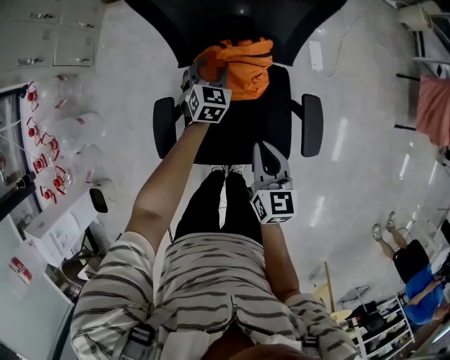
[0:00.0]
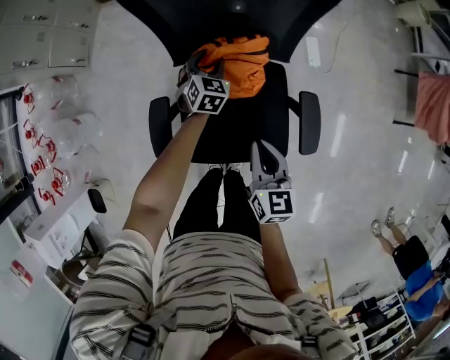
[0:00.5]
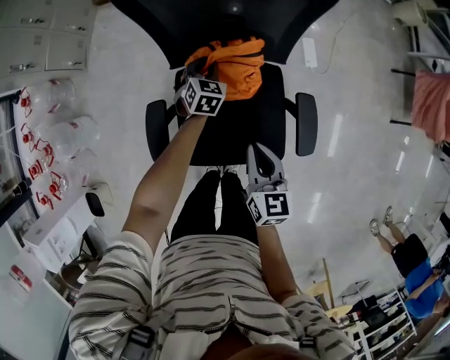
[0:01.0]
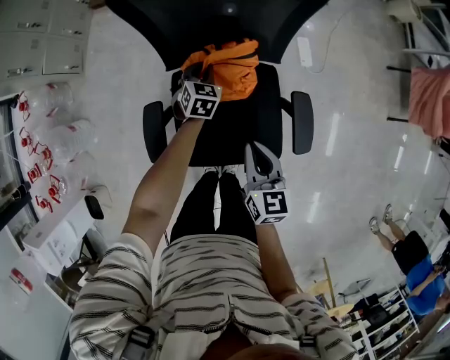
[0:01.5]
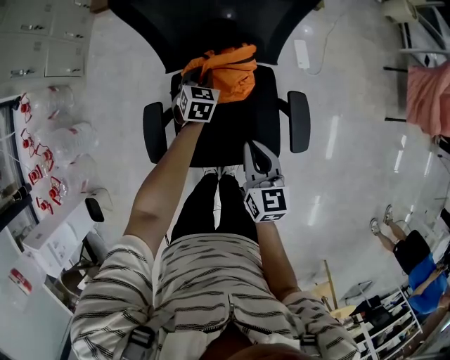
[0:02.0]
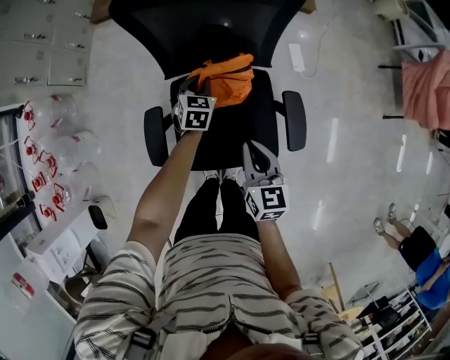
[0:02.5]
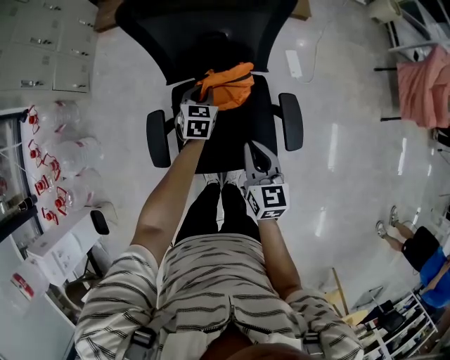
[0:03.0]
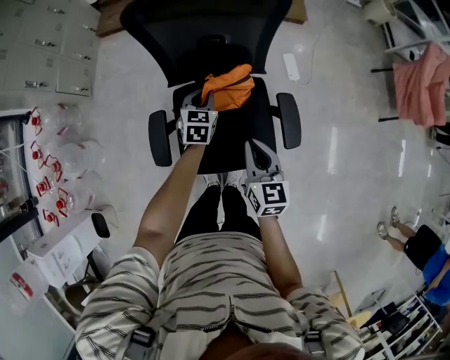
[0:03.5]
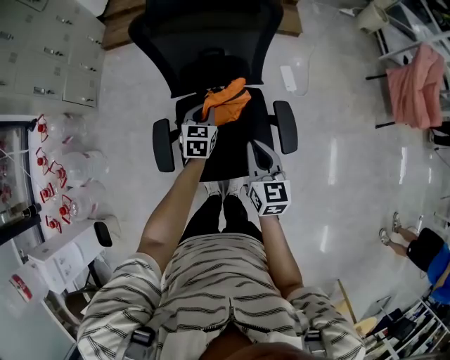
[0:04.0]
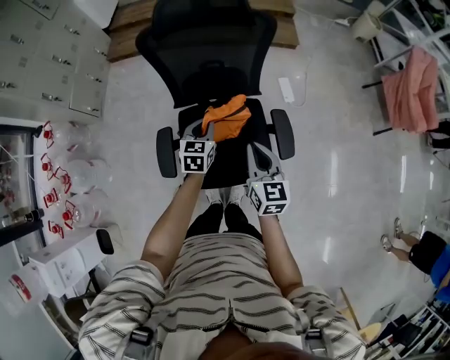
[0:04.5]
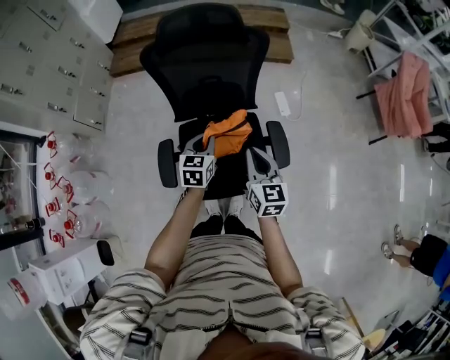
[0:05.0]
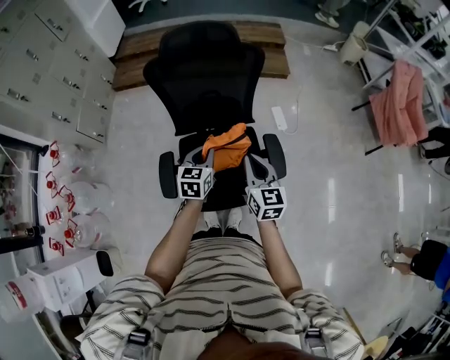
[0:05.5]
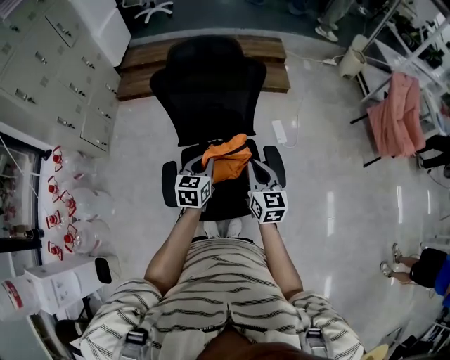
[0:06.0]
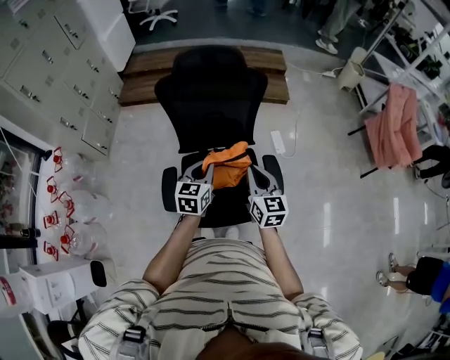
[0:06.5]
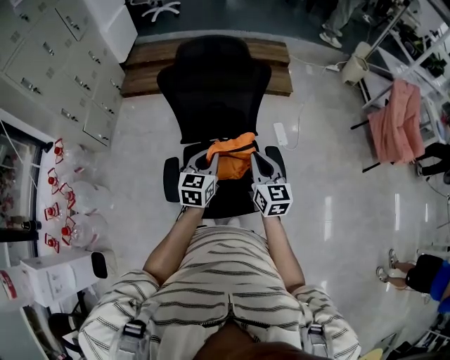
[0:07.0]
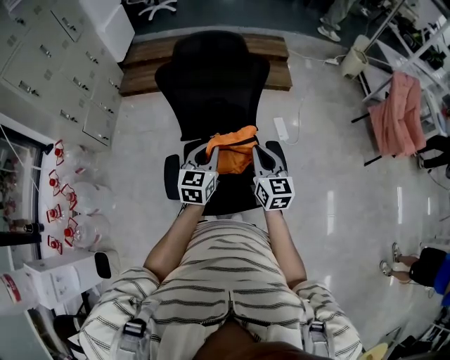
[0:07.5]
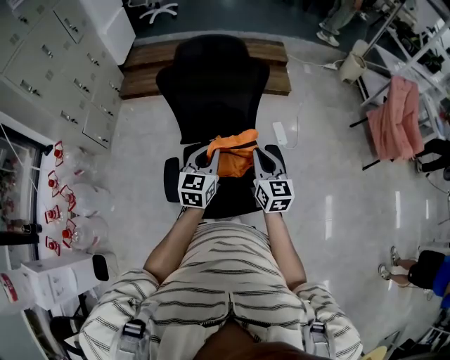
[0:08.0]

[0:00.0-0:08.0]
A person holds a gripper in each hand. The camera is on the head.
0:00.0 to 0:02.0: The left gripper closes its fingers.
0:02.0 to 0:04.0: The left gripper goes some 15 cm upward and backward. Meanwhile the right gripper moves upward, approximately 5 cm.
0:04.0 to 0:06.0: The right gripper moves upward, some 5 cm. Meanwhile the left gripper travels upward and backward by about 15 cm.
0:06.0 to 0:08.0: The left gripper shifts some 5 cm upward.

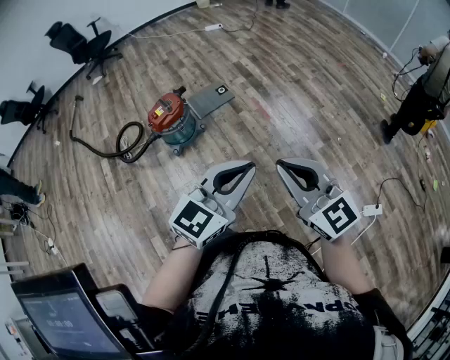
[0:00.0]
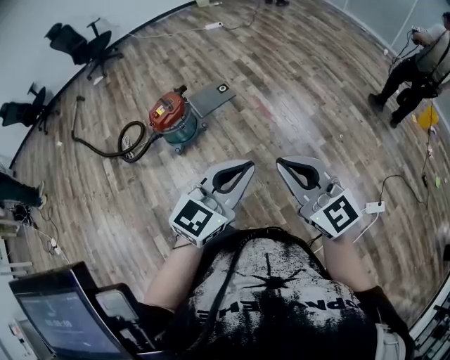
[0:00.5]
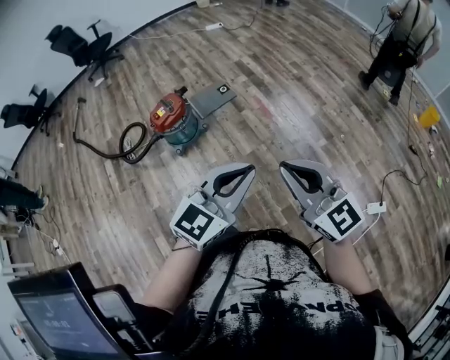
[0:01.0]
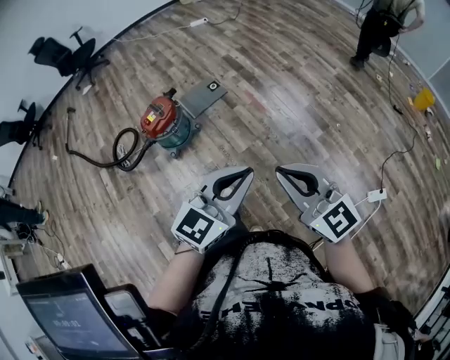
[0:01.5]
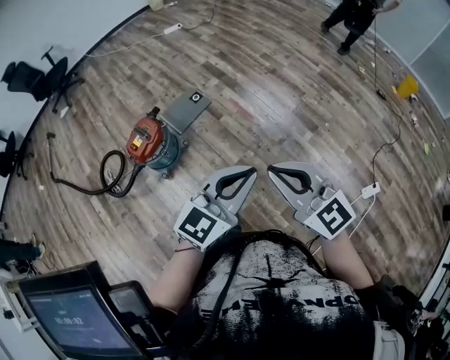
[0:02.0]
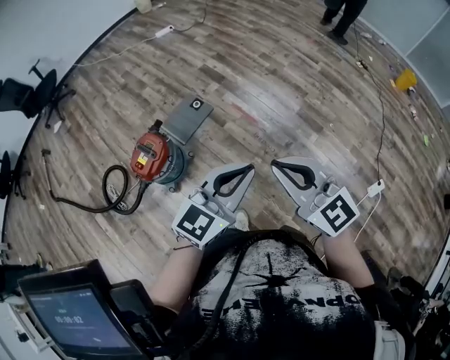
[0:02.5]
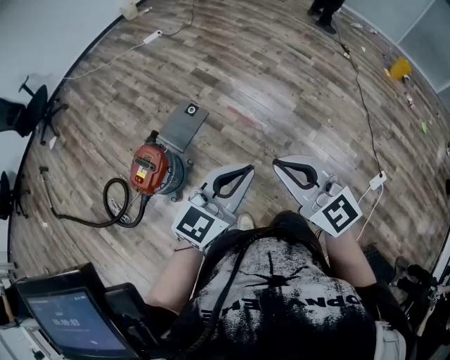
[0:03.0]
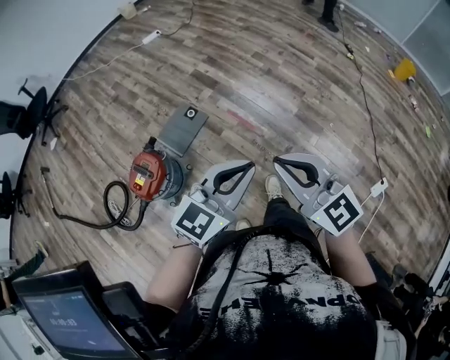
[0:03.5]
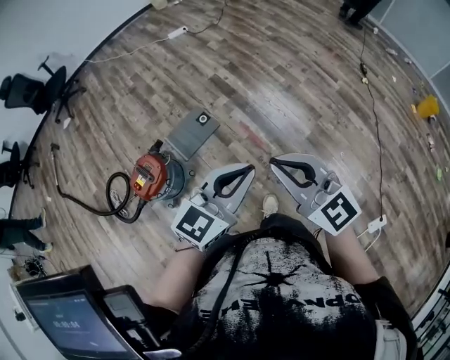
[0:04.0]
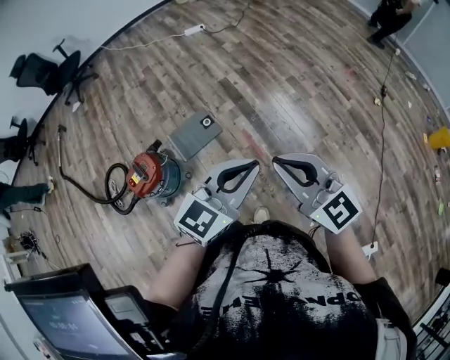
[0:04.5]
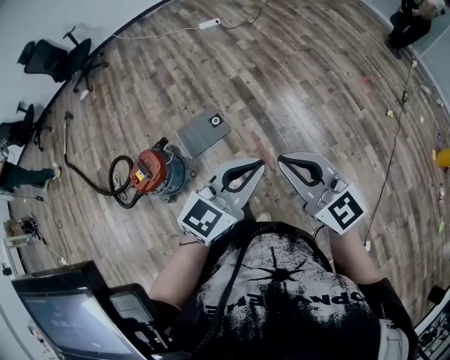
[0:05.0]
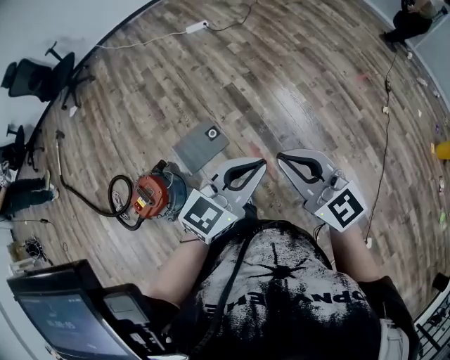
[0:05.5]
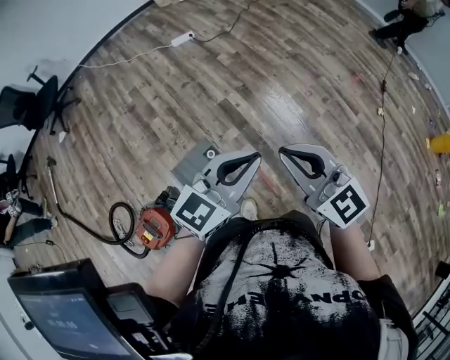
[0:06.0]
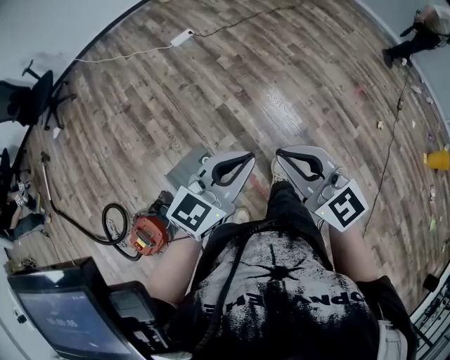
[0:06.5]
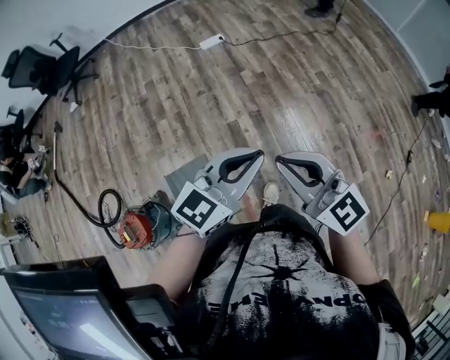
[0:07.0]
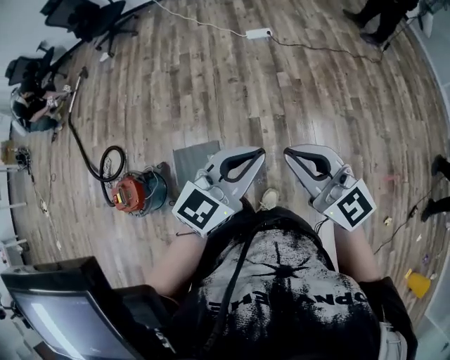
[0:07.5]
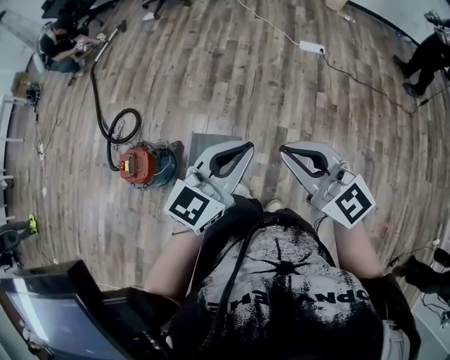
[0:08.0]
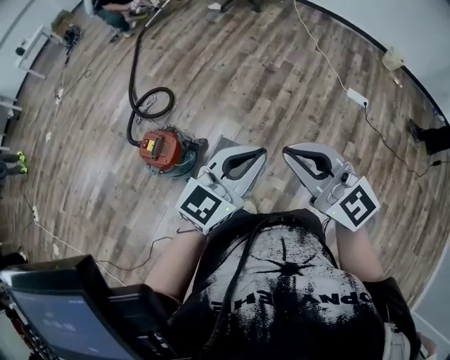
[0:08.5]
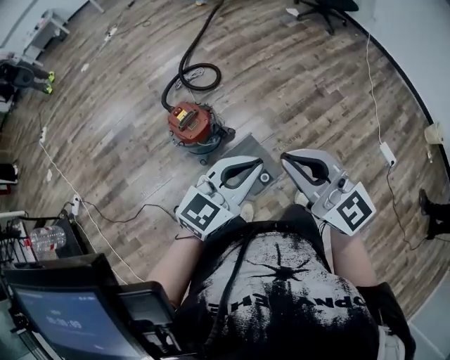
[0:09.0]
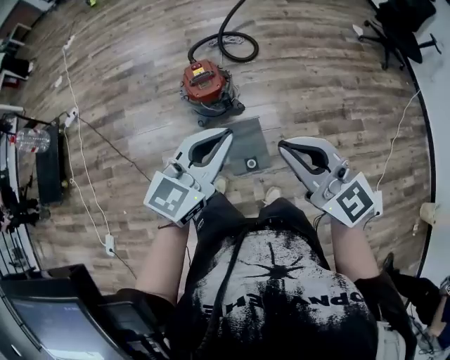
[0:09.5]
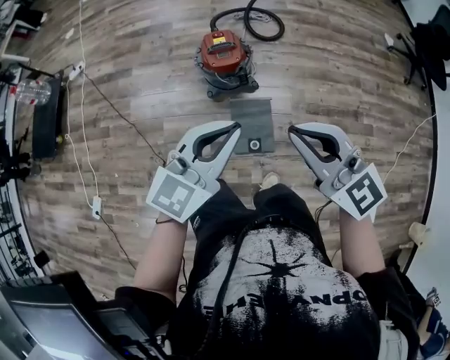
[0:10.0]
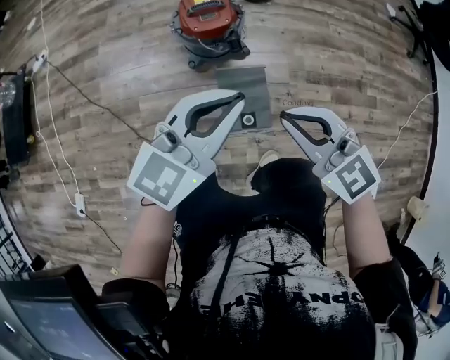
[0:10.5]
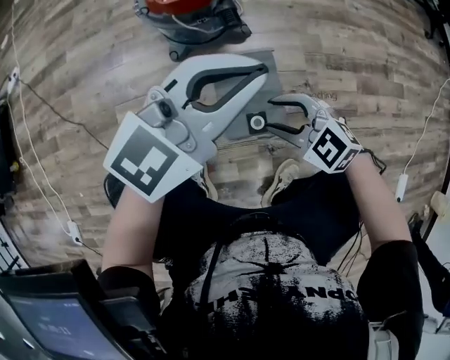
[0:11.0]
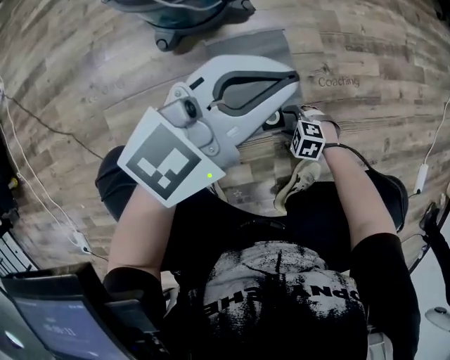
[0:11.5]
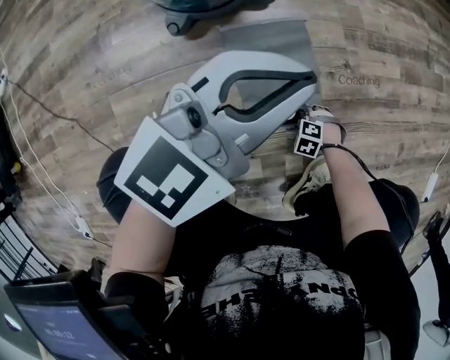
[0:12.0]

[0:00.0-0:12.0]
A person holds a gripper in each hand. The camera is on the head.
0:00.0 to 0:02.0: Both grippers travel together forward, about 15 cm.
0:02.0 to 0:04.0: Both grippers travel together forward, about 30 cm.
0:04.0 to 0:06.0: Both grippers are carried forward, some 40 cm.
0:06.0 to 0:08.0: The right gripper moves roughly 30 cm, and swivels about 50 degrees; the left gripper moves about 25 cm, and rotates approximately 50 degrees.
0:08.0 to 0:10.0: The right gripper ends up roughly 25 cm from where it was, and swivels some 80 degrees; the left gripper changes place by some 25 cm, and rotates some 80 degrees.
0:10.0 to 0:12.0: The left gripper travels downward by some 50 cm, and changes its angle by about 30 degrees, while the right gripper shifts some 1 m downward, points its fingers approximately 80 degrees further downward, and opens up.

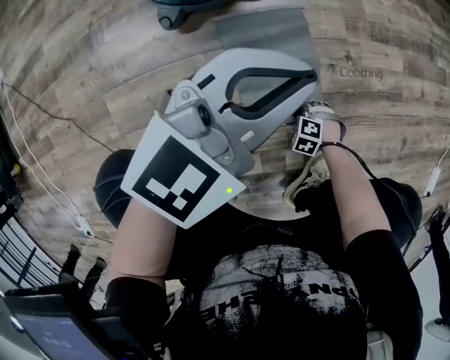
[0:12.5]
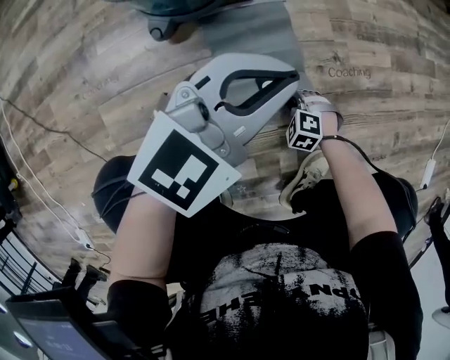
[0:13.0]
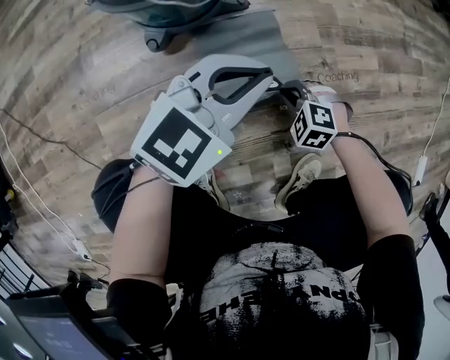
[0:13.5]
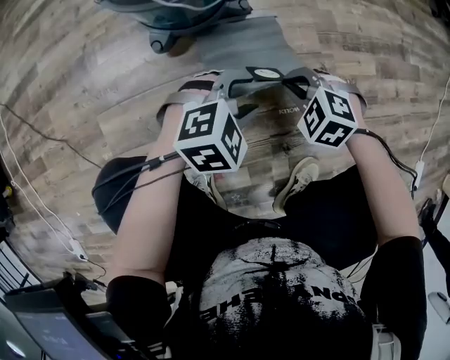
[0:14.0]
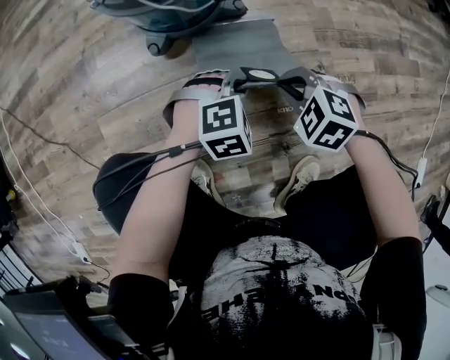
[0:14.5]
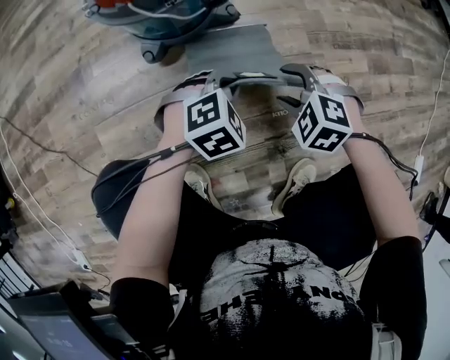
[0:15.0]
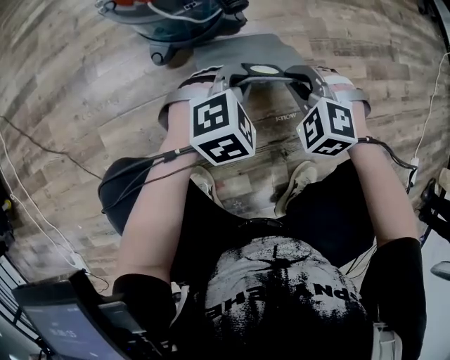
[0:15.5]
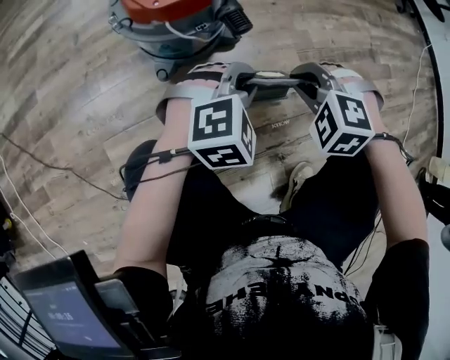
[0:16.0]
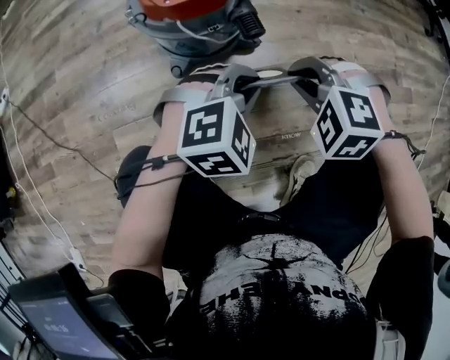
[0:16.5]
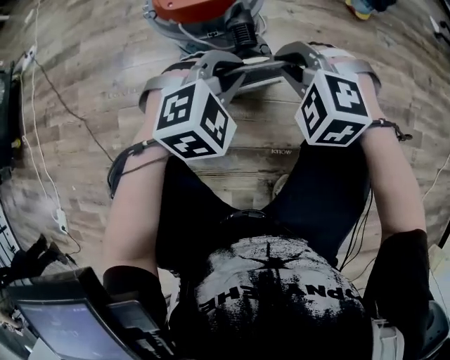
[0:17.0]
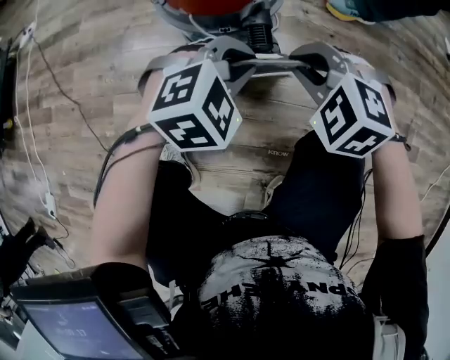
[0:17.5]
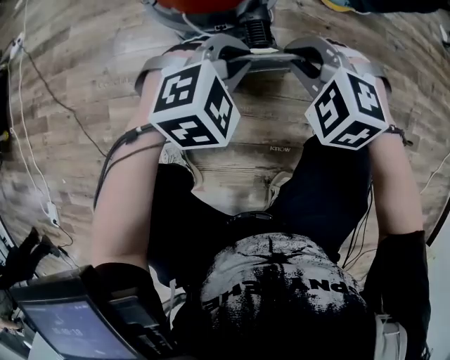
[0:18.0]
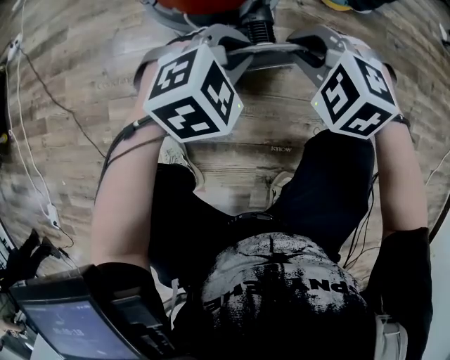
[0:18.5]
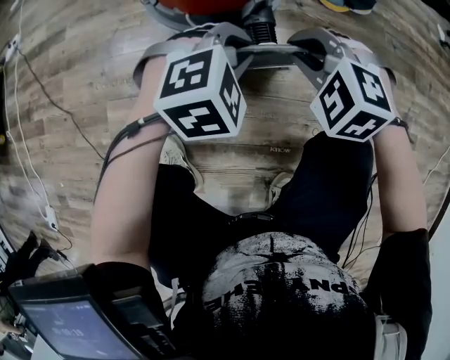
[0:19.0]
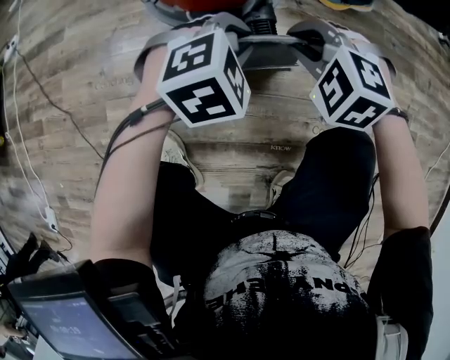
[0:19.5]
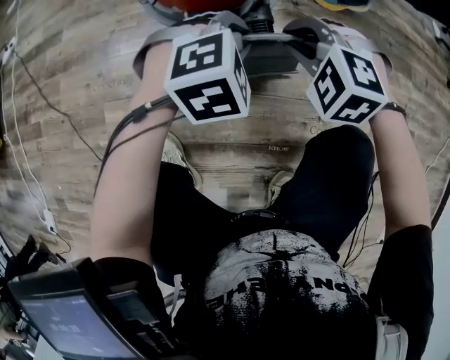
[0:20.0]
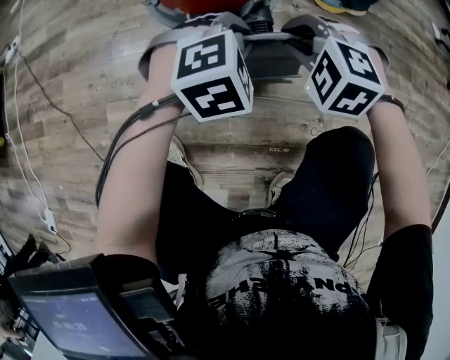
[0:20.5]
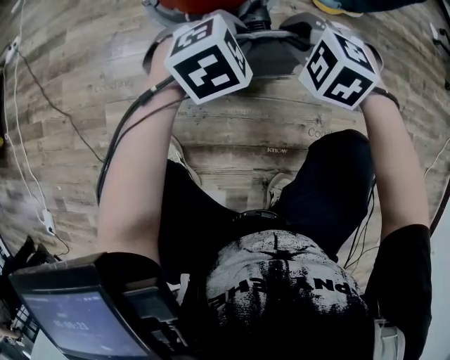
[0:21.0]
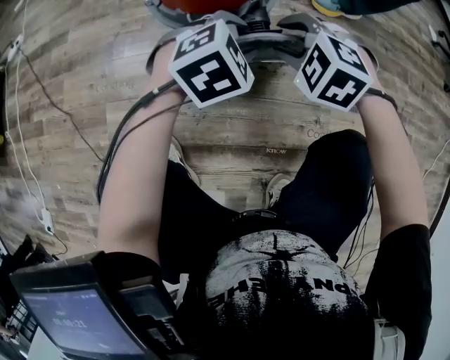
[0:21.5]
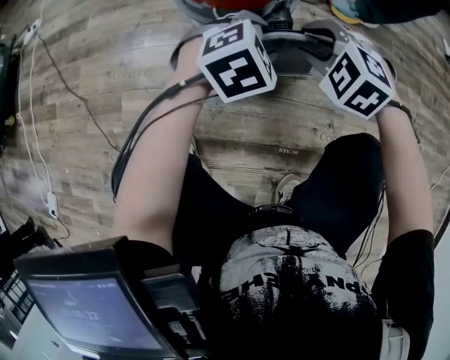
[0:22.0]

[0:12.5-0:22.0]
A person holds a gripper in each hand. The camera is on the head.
0:12.5 to 0:14.5: The left gripper is displaced downward by some 20 cm, points its fingers approximately 50 degrees further downward, and opens and closes again, while the right gripper travels upward by some 25 cm, and closes its fingers.
0:14.5 to 0:16.5: The right gripper heads upward, forward and to the left, covering about 15 cm, rotates approximately 20 degrees, and opens, then closes once more, while the left gripper is displaced upward and forward by some 15 cm.
0:16.5 to 0:18.0: The grippers both shift forward by roughly 10 cm.
0:18.0 to 0:20.0: The grippers stay close to where they were, moving slightly.
0:20.0 to 0:22.0: The left gripper opens its fingers, while the right gripper opens its fingers.
